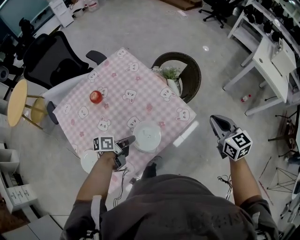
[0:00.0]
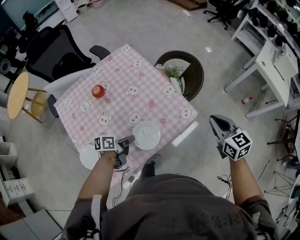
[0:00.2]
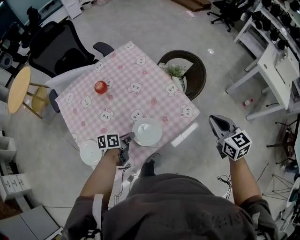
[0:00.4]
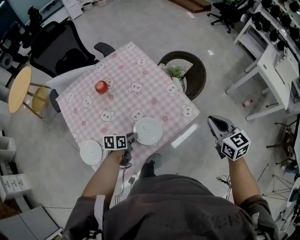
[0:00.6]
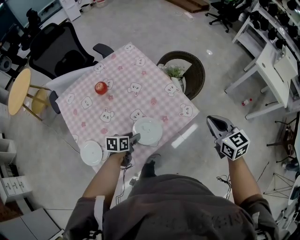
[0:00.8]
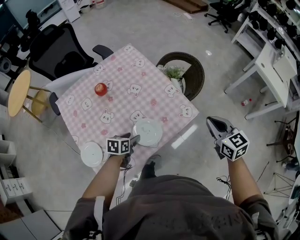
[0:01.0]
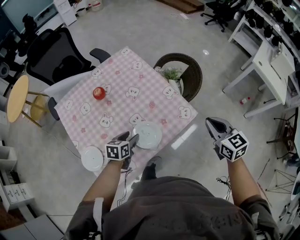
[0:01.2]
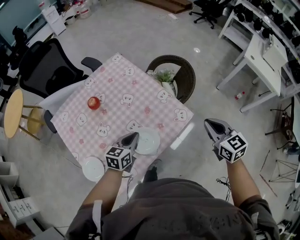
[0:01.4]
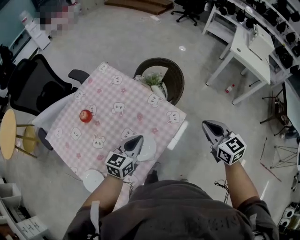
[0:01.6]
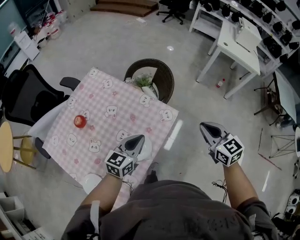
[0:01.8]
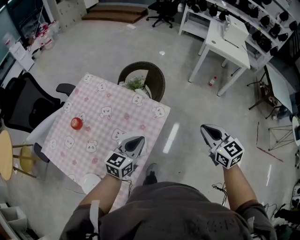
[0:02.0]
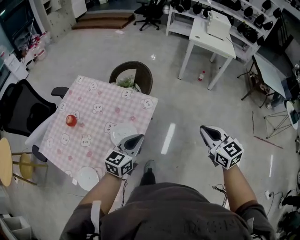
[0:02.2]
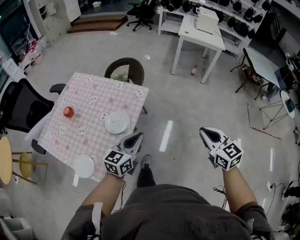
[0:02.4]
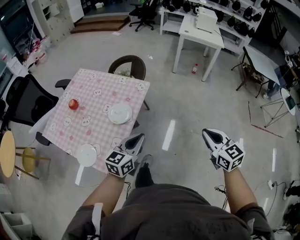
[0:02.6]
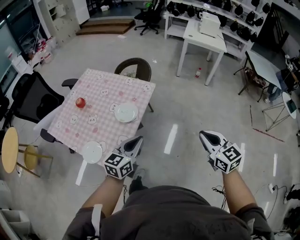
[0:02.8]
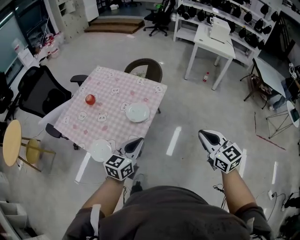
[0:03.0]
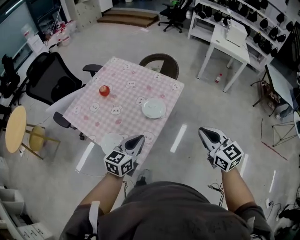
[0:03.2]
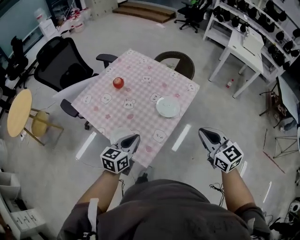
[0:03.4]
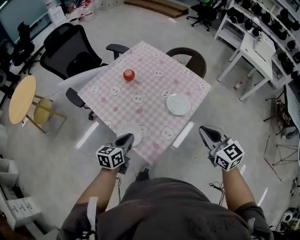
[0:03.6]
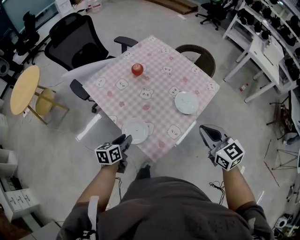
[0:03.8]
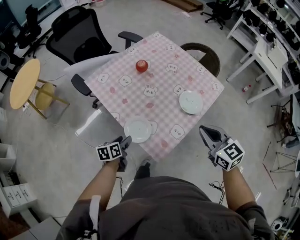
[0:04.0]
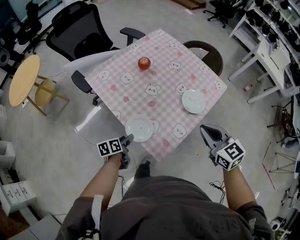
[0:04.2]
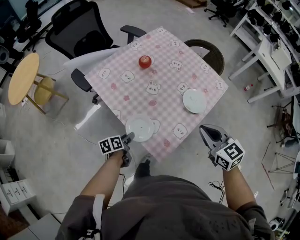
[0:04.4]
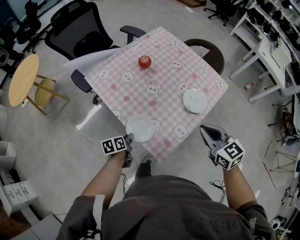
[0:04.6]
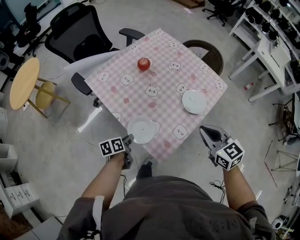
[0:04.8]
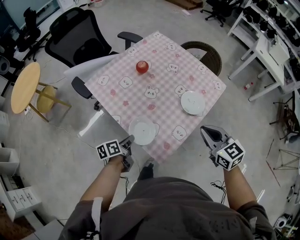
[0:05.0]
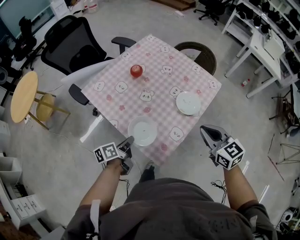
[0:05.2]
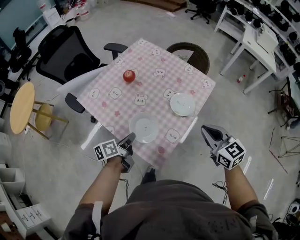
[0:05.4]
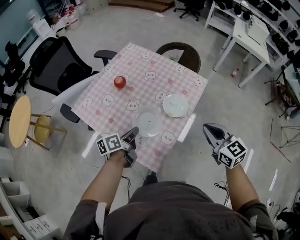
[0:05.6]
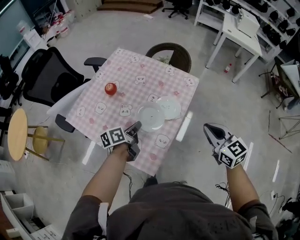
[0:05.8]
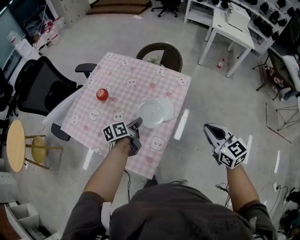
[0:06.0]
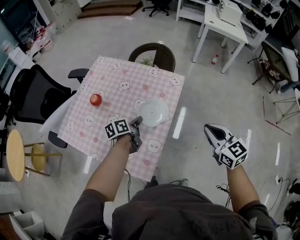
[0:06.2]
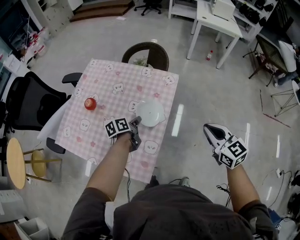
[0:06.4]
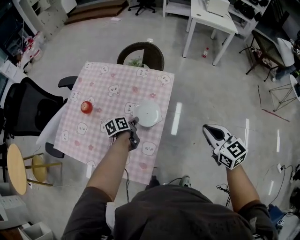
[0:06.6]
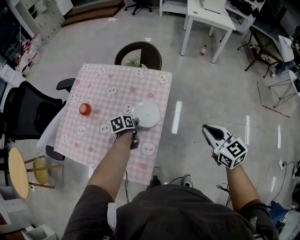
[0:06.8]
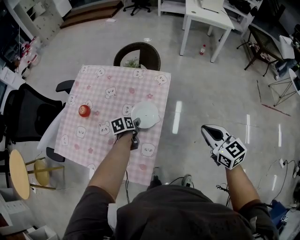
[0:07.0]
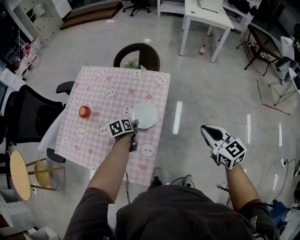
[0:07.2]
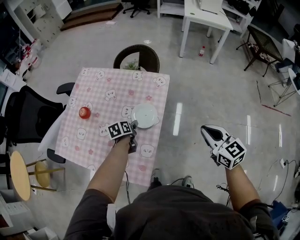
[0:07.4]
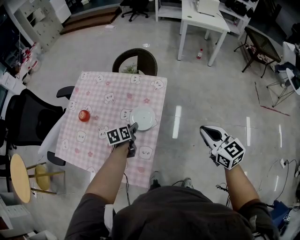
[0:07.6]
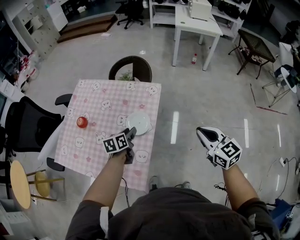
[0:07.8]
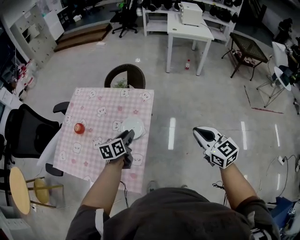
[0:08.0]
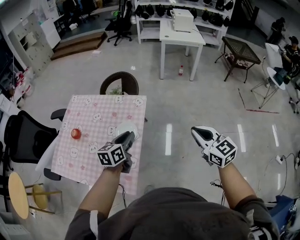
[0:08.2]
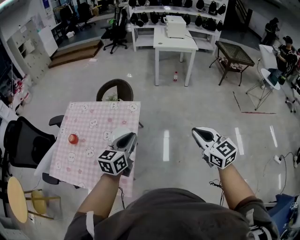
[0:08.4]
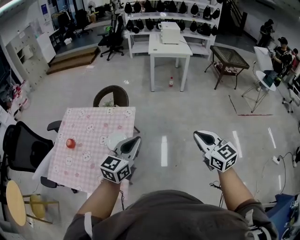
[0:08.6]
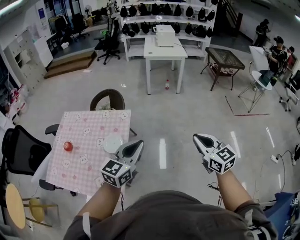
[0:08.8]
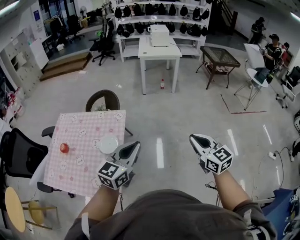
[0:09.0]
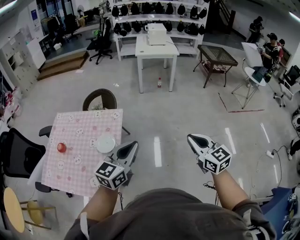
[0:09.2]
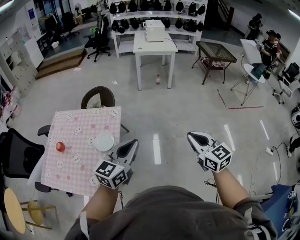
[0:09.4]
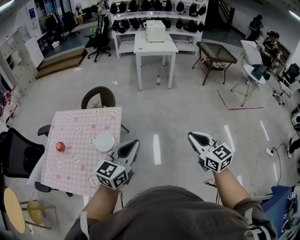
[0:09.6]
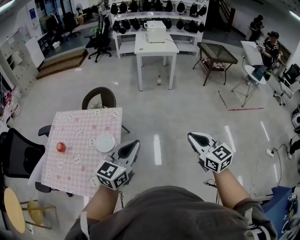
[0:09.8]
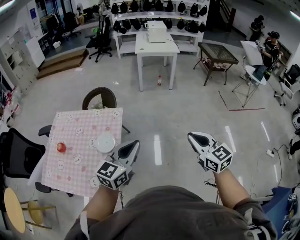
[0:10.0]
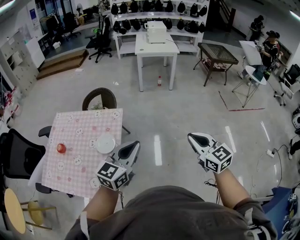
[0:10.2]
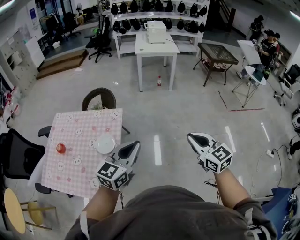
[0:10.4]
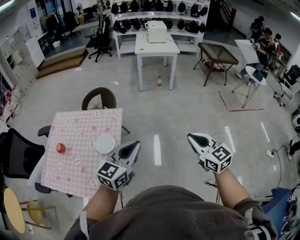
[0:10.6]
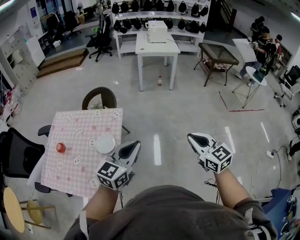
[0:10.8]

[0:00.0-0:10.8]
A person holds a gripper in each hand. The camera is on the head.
0:00.0 to 0:01.6: The left gripper heads upward and to the right, covering roughly 10 cm, twists about 50 degrees clockwise, seen from behind, and opens and closes again.
0:01.6 to 0:03.0: Both grippers travel together backward, approximately 35 cm.
0:03.0 to 0:04.6: The right gripper is displaced to the left and forward by about 30 cm, and swivels some 30 degrees. Meanwhile the left gripper shifts approximately 40 cm to the left and downward, twists roughly 50 degrees counterclockwise, seen from behind, and opens, then closes again.
0:04.6 to 0:06.2: The right gripper ends up roughly 20 cm from where it was, and rotates approximately 30 degrees. Meanwhile the left gripper ends up approximately 35 cm from where it was, and changes its angle by some 30 degrees.
0:06.2 to 0:07.8: The grippers both shift to the right by some 5 cm. The left gripper travels downward and back again, about 5 cm each way, turns by approximately 30 degrees, and opens.
0:07.8 to 0:09.2: The right gripper heads to the right, upward and backward, covering about 25 cm. Meanwhile the left gripper heads to the right, upward and backward, covering roughly 40 cm, tips its fingers upward by some 30 degrees, and closes its fingers.
0:09.2 to 0:10.8: The grippers stay close to where they were, moving slightly.

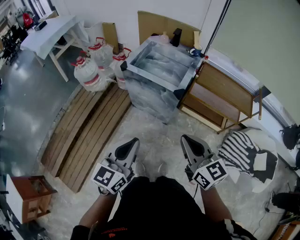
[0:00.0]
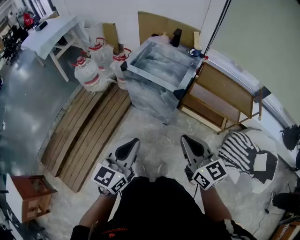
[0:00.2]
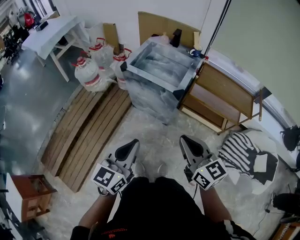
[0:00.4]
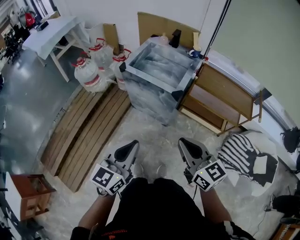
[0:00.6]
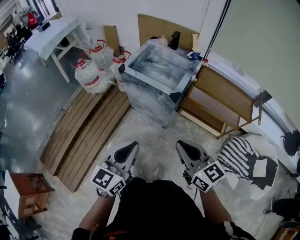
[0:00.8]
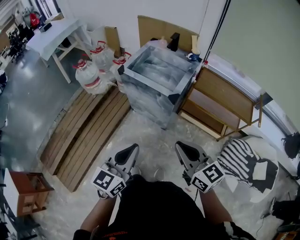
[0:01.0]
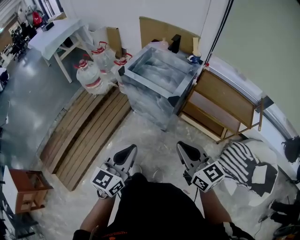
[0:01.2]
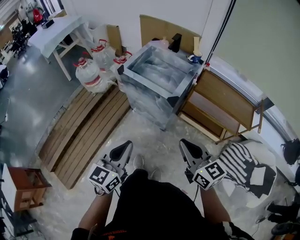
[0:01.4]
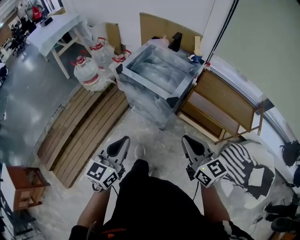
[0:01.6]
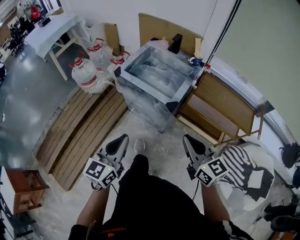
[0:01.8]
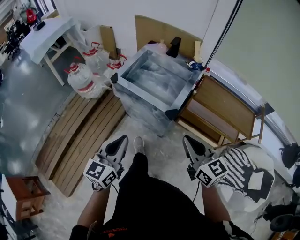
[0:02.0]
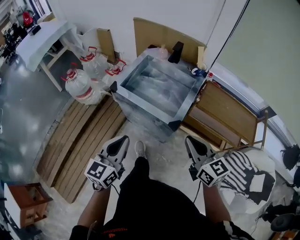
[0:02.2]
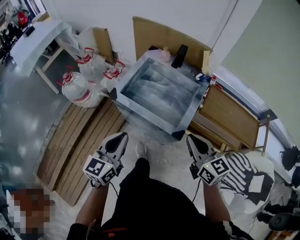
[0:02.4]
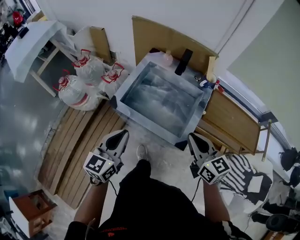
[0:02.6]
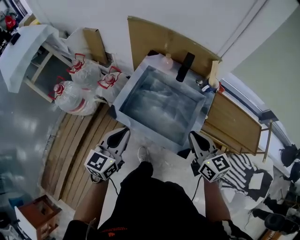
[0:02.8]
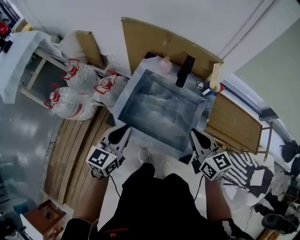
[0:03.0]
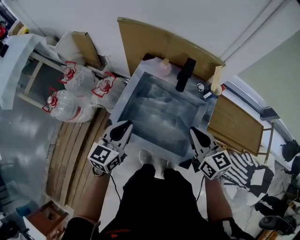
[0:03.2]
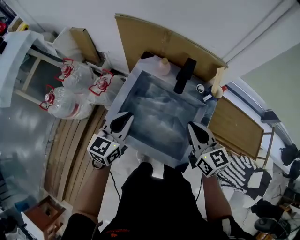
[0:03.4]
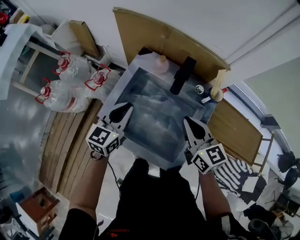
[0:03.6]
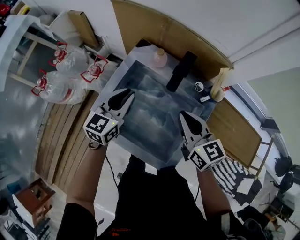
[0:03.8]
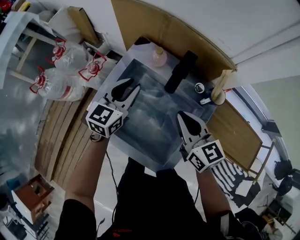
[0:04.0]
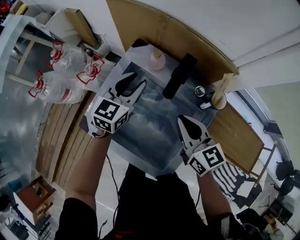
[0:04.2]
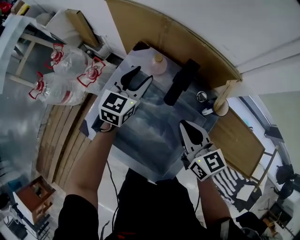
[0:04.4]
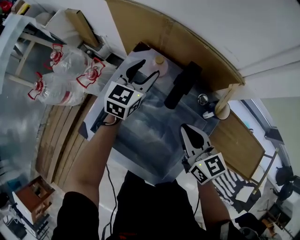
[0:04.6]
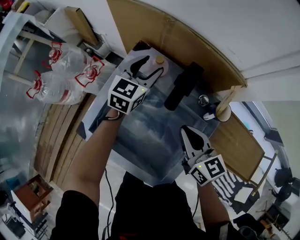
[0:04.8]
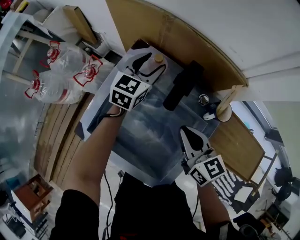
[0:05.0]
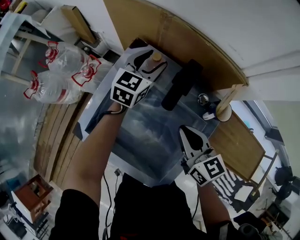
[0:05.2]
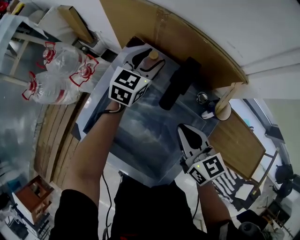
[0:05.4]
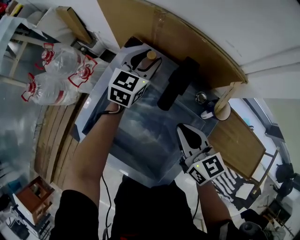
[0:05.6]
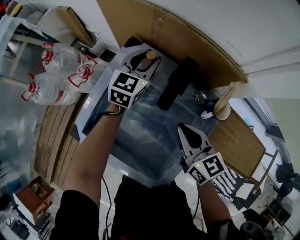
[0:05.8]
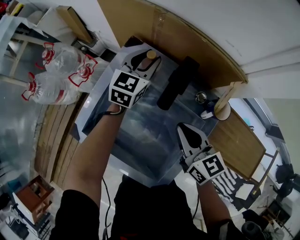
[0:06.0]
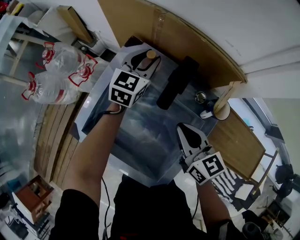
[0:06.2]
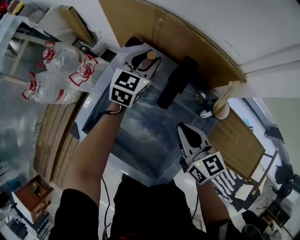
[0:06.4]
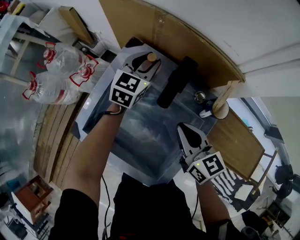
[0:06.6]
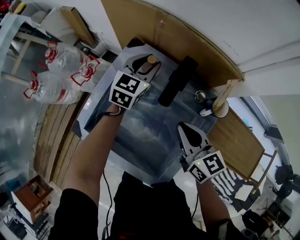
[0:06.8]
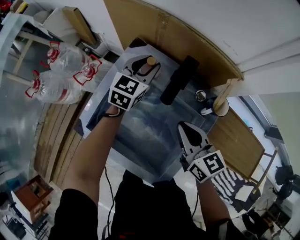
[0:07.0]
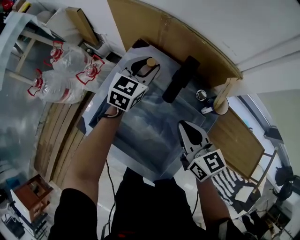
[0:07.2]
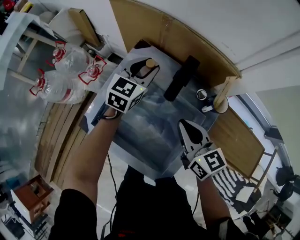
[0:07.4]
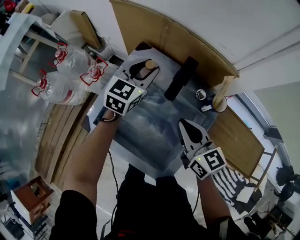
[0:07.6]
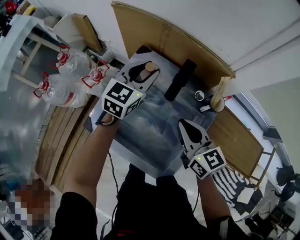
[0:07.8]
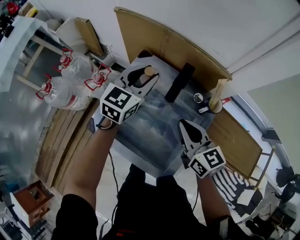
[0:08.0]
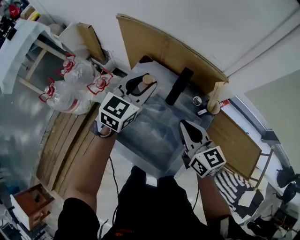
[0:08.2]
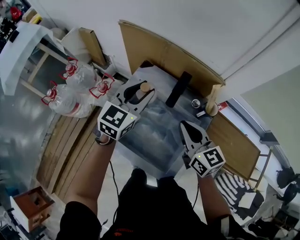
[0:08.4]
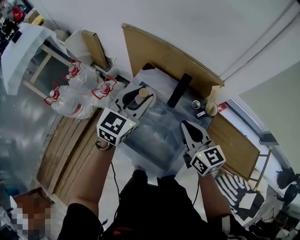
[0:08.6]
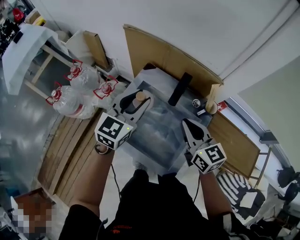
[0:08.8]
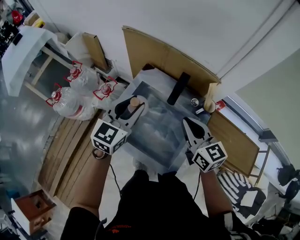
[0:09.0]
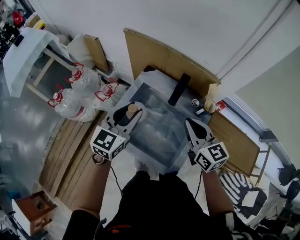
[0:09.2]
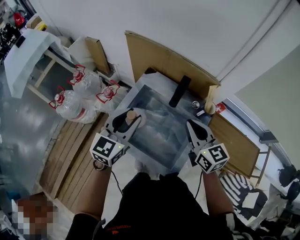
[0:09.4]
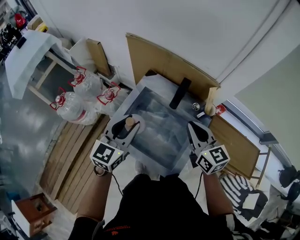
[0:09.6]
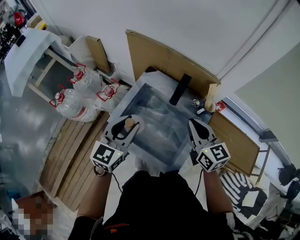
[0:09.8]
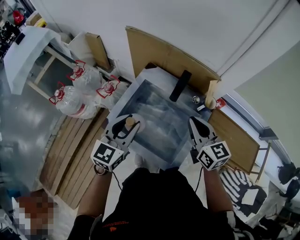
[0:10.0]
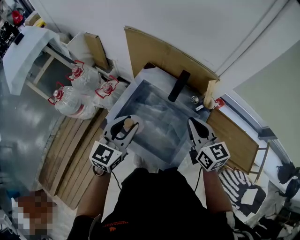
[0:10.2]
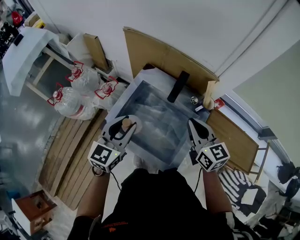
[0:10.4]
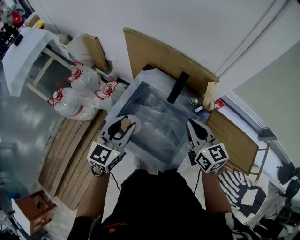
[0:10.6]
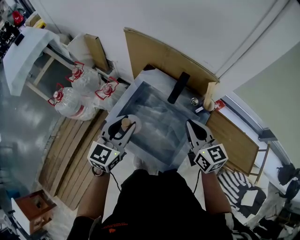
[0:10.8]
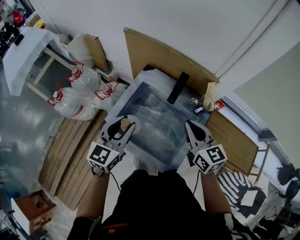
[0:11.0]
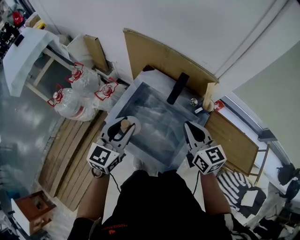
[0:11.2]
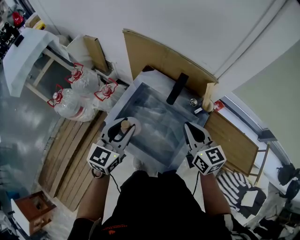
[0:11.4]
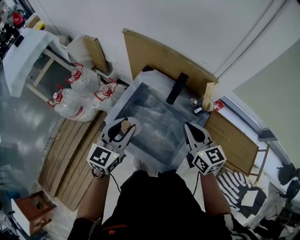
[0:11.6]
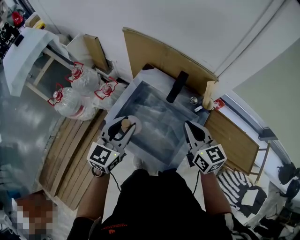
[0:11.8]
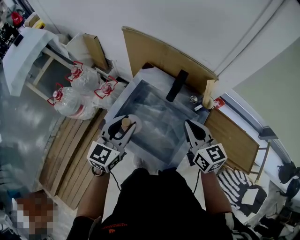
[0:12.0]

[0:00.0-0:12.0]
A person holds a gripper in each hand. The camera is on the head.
0:00.0 to 0:01.6: The left gripper changes place by about 5 cm; the right gripper travels to the right and forward by about 10 cm.
0:01.6 to 0:03.0: Both grippers are carried forward, roughly 50 cm.
0:03.0 to 0:04.4: The left gripper is displaced forward and to the right by roughly 30 cm, and opens its fingers; the right gripper is displaced forward and downward by some 15 cm.
0:04.4 to 0:06.0: The left gripper goes approximately 10 cm forward and to the right.
0:06.0 to 0:07.6: The left gripper travels backward and upward by approximately 10 cm, while the right gripper goes roughly 5 cm upward.
0:07.6 to 0:09.0: The right gripper moves upward, some 10 cm. The left gripper is displaced backward, upward and to the left by roughly 20 cm.
0:09.0 to 0:10.4: The left gripper heads backward, covering about 10 cm.
0:10.4 to 0:12.0: Both grippers stay put.

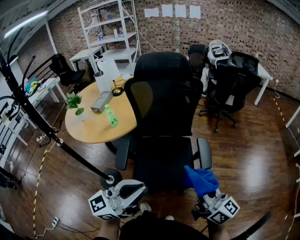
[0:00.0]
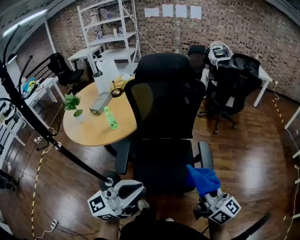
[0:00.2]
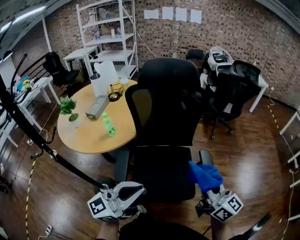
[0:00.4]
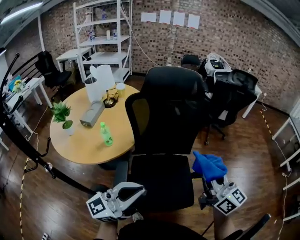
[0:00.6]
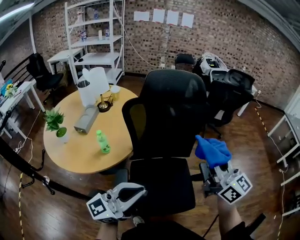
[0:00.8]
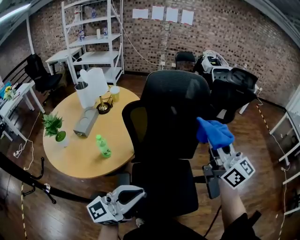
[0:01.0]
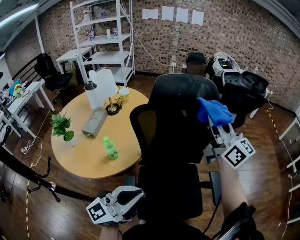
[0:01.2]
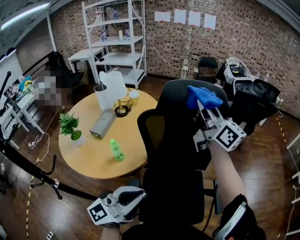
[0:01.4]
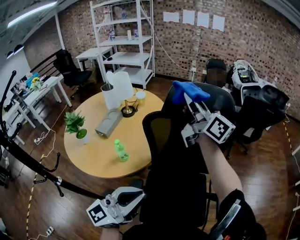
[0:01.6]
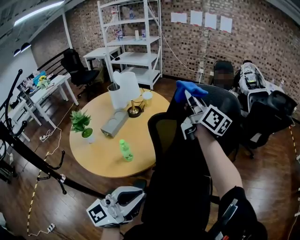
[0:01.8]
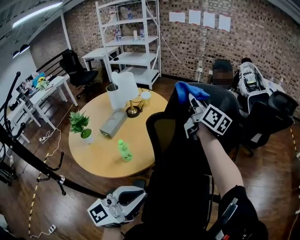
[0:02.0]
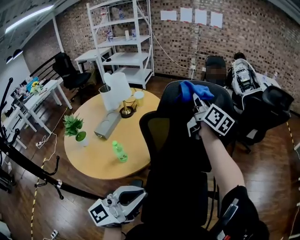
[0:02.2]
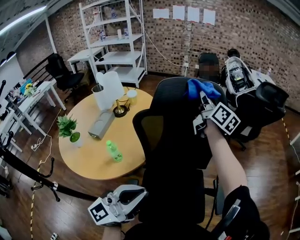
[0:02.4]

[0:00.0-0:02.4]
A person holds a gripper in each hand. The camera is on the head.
0:00.0 to 0:01.2: The left gripper travels forward and to the left by about 30 cm; the right gripper is displaced forward, to the left and upward by roughly 50 cm.
0:01.2 to 0:02.4: The right gripper goes about 20 cm forward, and turns by approximately 20 degrees, while the left gripper ends up some 5 cm from where it was.
